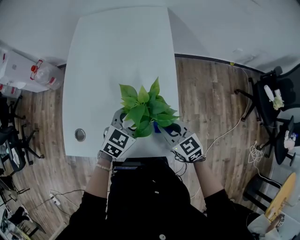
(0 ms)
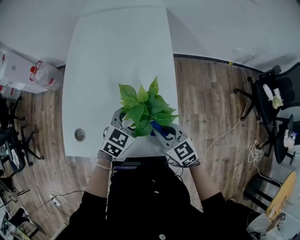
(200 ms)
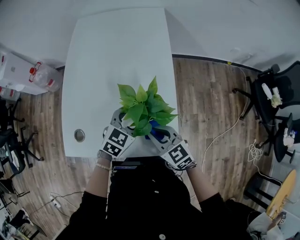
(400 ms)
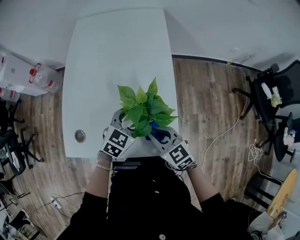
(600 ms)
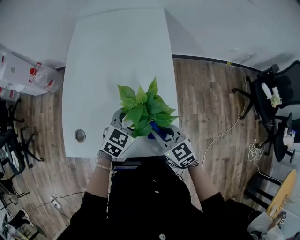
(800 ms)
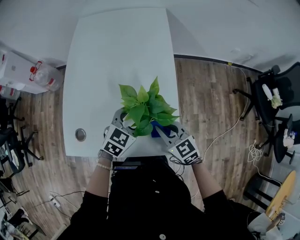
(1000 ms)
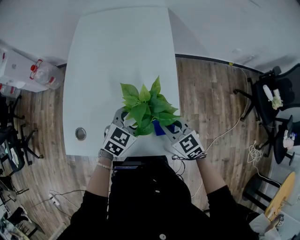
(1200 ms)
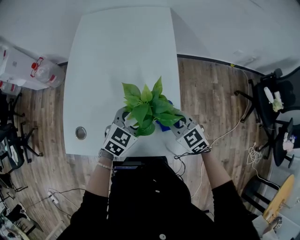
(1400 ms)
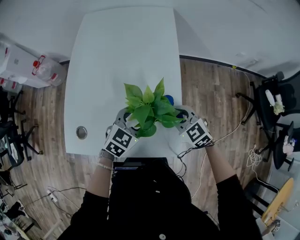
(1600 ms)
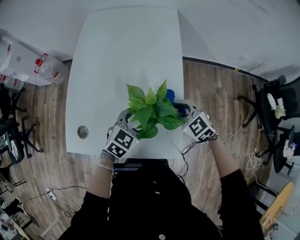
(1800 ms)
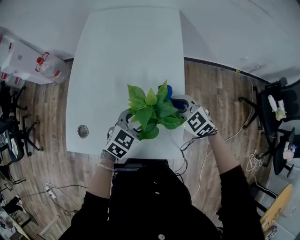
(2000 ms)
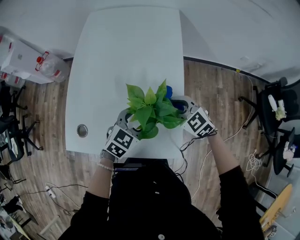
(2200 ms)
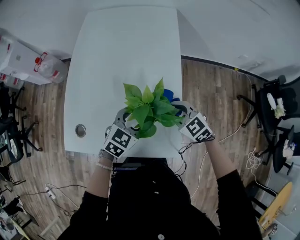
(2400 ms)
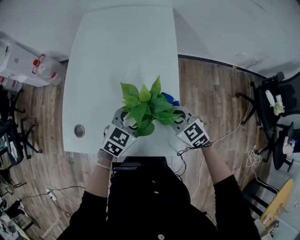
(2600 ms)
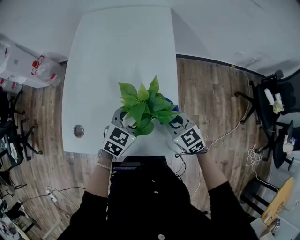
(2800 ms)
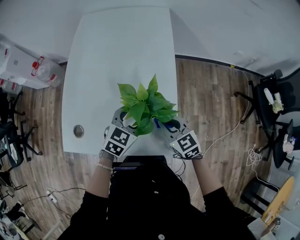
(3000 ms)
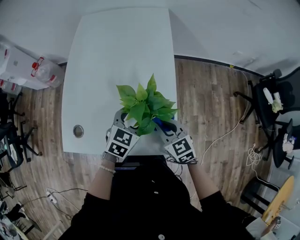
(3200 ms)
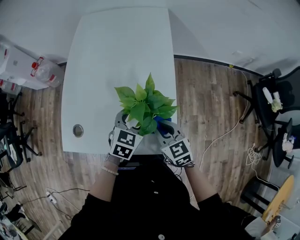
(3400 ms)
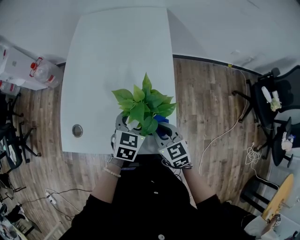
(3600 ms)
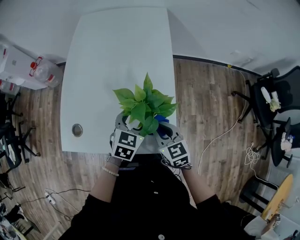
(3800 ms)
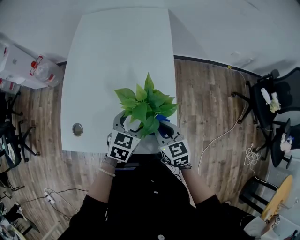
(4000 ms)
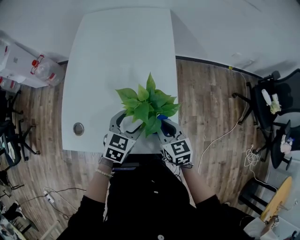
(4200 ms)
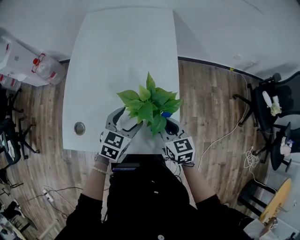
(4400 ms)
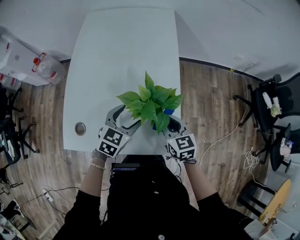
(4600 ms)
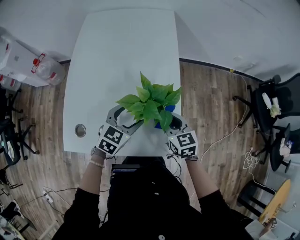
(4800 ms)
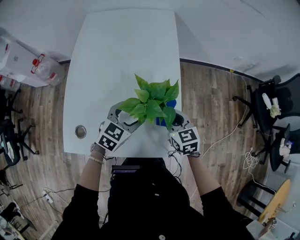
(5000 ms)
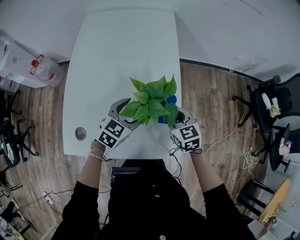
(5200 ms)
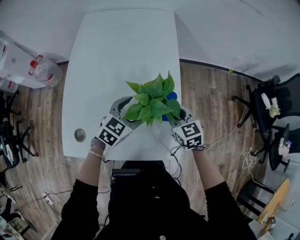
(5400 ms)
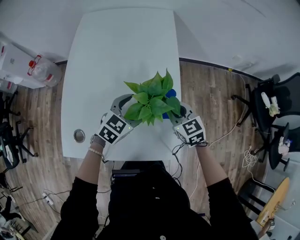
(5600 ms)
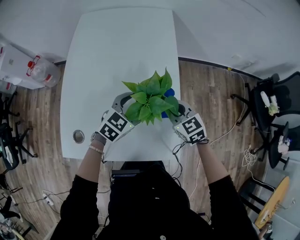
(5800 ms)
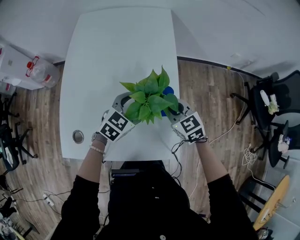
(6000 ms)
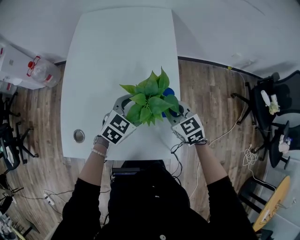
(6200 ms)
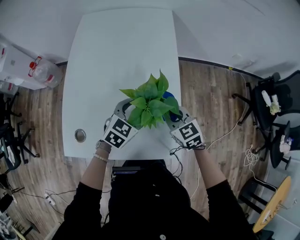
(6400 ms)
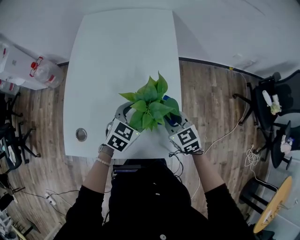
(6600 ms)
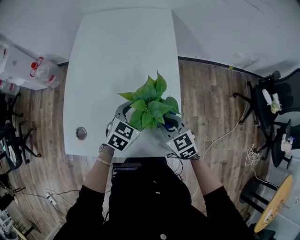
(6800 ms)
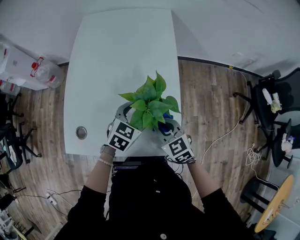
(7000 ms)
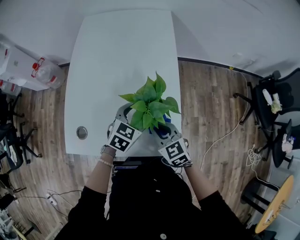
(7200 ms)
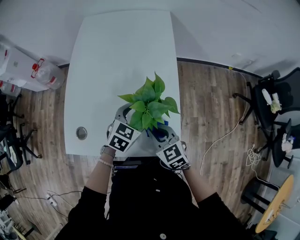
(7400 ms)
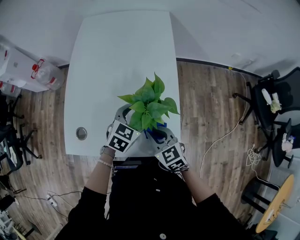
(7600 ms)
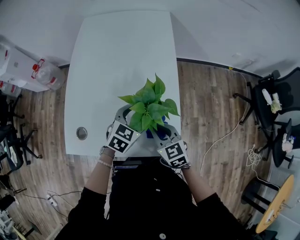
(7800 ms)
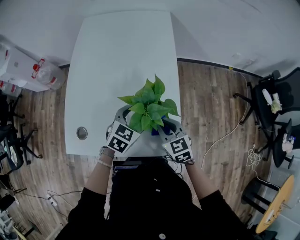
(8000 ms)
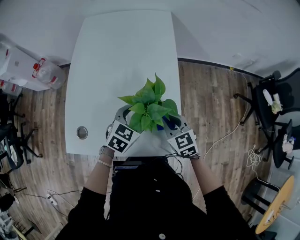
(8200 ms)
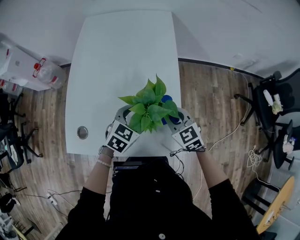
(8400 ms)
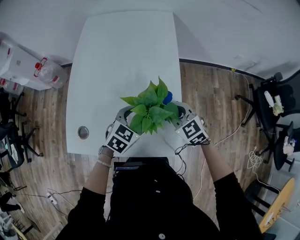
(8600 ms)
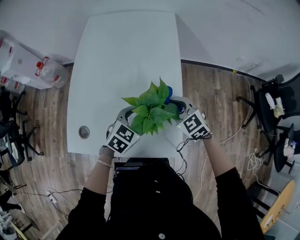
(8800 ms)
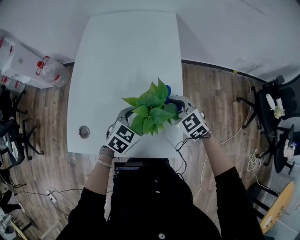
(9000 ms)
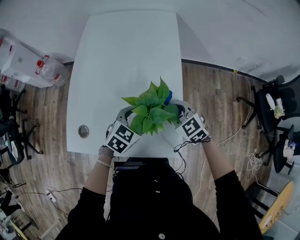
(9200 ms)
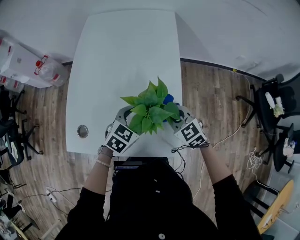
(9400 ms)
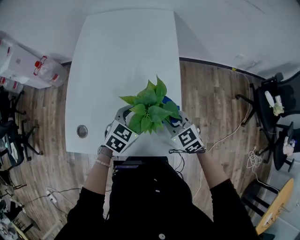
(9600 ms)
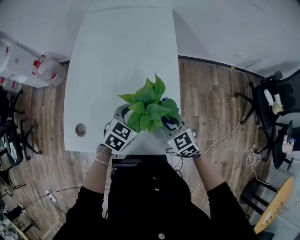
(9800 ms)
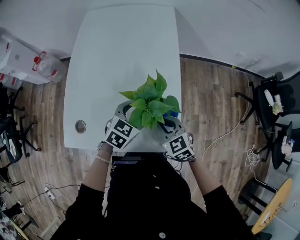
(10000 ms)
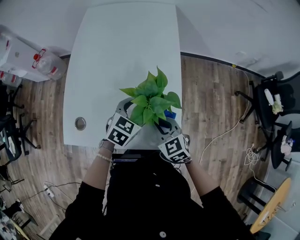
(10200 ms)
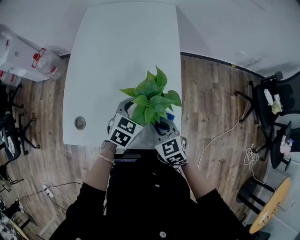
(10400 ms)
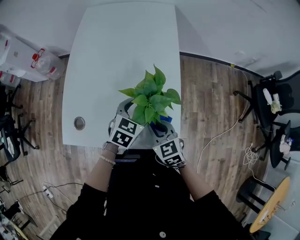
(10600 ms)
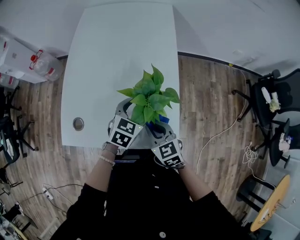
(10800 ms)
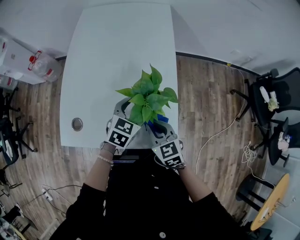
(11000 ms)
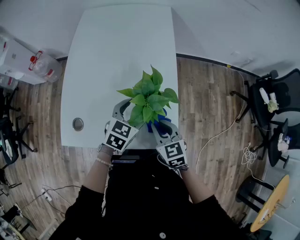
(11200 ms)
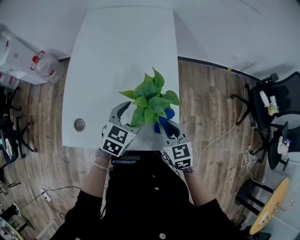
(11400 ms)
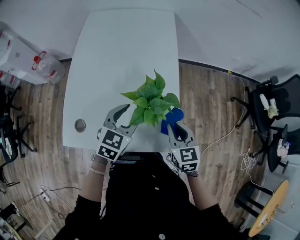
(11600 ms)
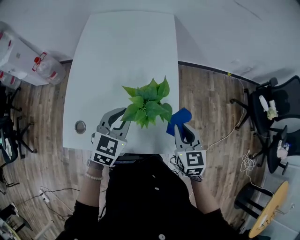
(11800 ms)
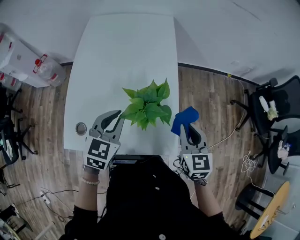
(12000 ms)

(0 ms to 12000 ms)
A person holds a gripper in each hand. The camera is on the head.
0 ms - 1600 ms: The right gripper is displaced forward by approximately 5 cm, and swivels approximately 20 degrees.
1600 ms - 3000 ms: There are only small adjustments of the grippers.
3000 ms - 4400 ms: The grippers stay close to where they were, moving slightly.
4400 ms - 6000 ms: Both grippers travel together forward, approximately 10 cm. The right gripper swivels some 20 degrees.
6000 ms - 7600 ms: The left gripper is displaced backward by roughly 5 cm. The right gripper shifts some 15 cm backward.
7600 ms - 9000 ms: The right gripper is displaced forward by some 15 cm.
9000 ms - 10400 ms: The right gripper moves backward, some 10 cm.
10400 ms - 12000 ms: The left gripper goes roughly 15 cm upward and to the left, and closes up, while the right gripper travels upward and to the right by some 15 cm, and turns by approximately 30 degrees.

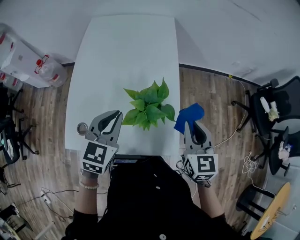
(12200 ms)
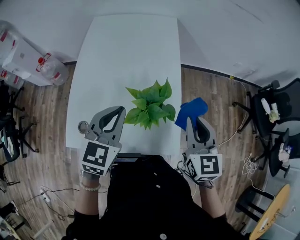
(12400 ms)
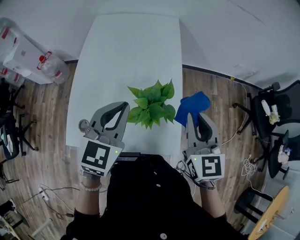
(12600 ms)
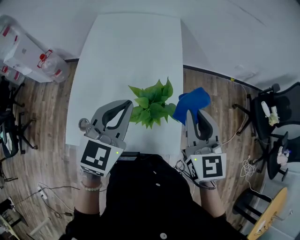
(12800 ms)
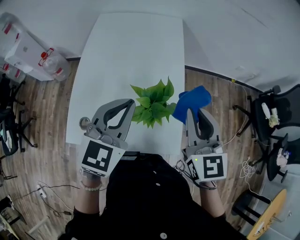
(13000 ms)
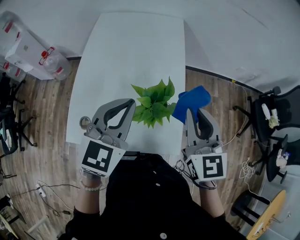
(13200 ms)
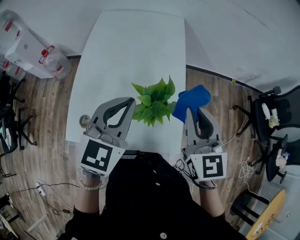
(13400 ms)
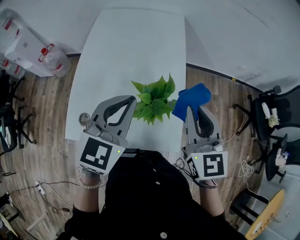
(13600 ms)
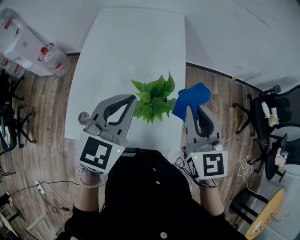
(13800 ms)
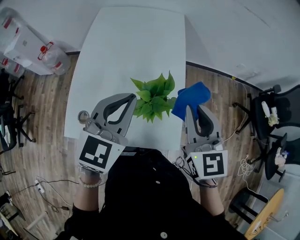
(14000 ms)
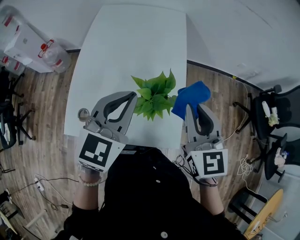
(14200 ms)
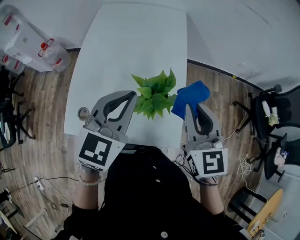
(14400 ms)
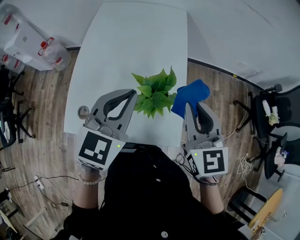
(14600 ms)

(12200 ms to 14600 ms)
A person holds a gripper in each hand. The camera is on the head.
12200 ms - 13400 ms: The left gripper heads upward, covering roughly 10 cm, while the right gripper goes roughly 10 cm upward and to the left.
13400 ms - 14600 ms: There are only small adjustments of the grippers.

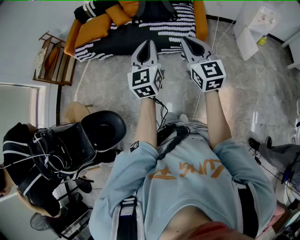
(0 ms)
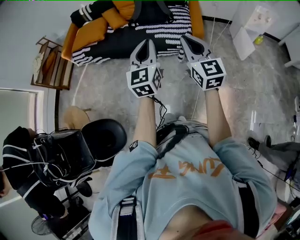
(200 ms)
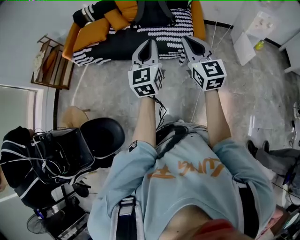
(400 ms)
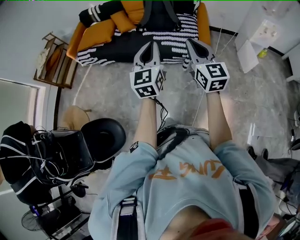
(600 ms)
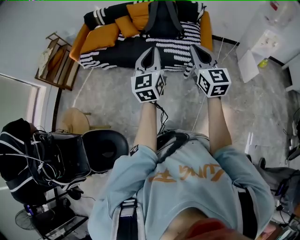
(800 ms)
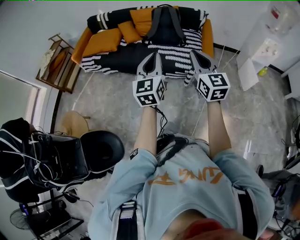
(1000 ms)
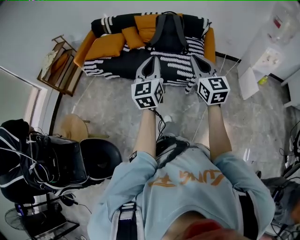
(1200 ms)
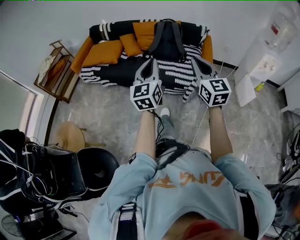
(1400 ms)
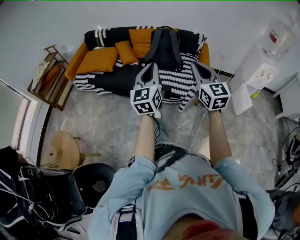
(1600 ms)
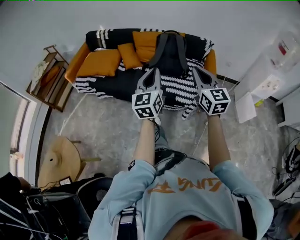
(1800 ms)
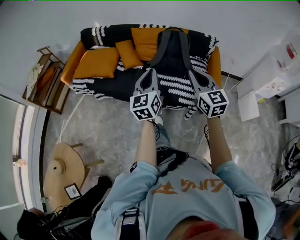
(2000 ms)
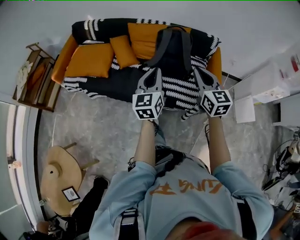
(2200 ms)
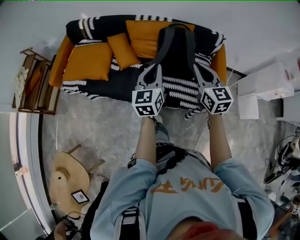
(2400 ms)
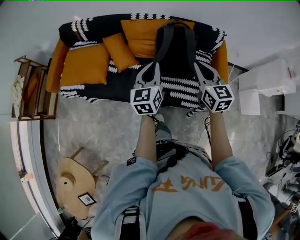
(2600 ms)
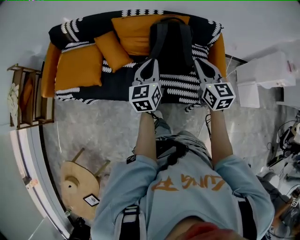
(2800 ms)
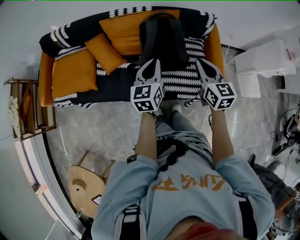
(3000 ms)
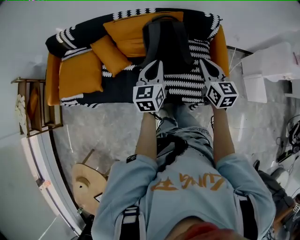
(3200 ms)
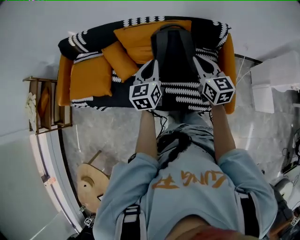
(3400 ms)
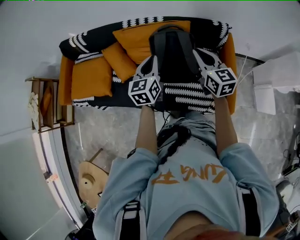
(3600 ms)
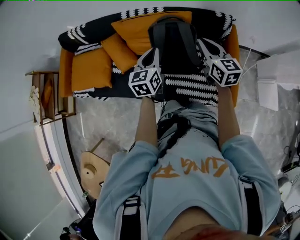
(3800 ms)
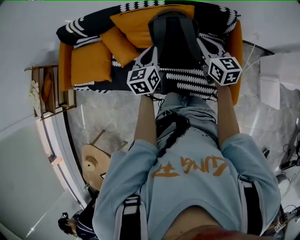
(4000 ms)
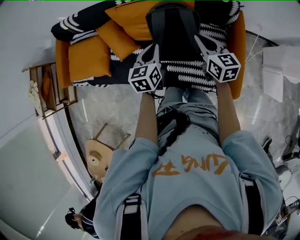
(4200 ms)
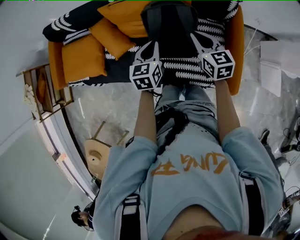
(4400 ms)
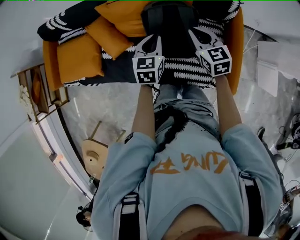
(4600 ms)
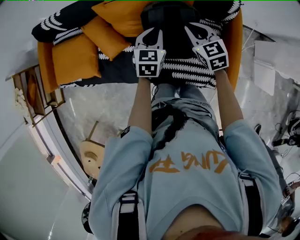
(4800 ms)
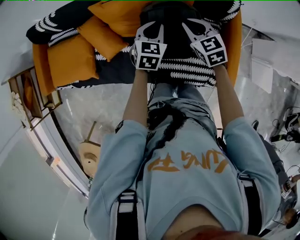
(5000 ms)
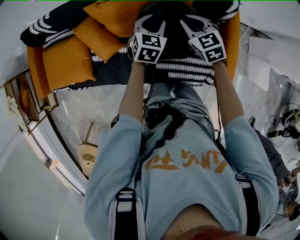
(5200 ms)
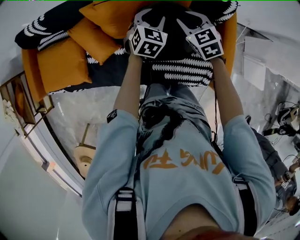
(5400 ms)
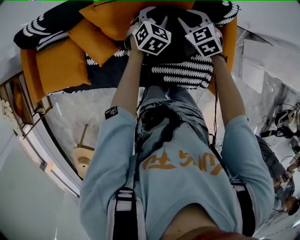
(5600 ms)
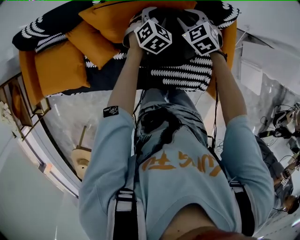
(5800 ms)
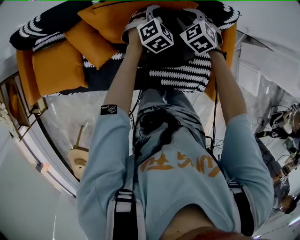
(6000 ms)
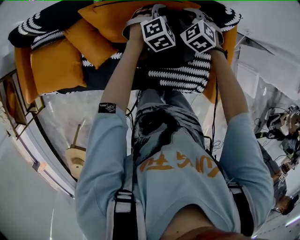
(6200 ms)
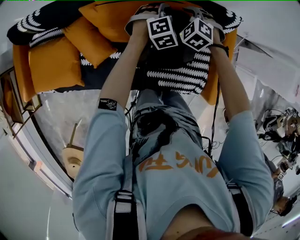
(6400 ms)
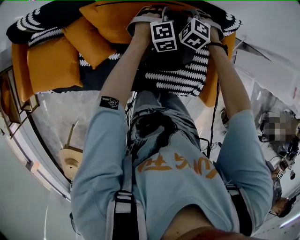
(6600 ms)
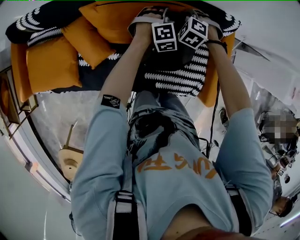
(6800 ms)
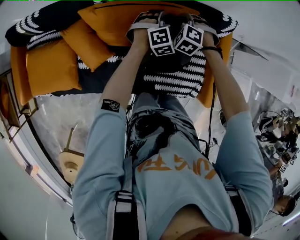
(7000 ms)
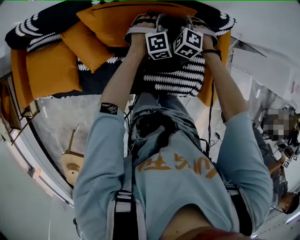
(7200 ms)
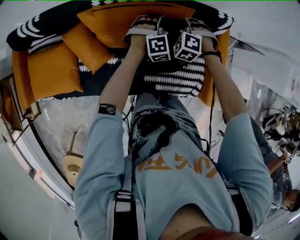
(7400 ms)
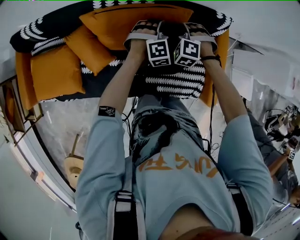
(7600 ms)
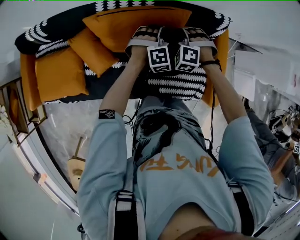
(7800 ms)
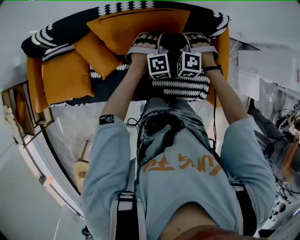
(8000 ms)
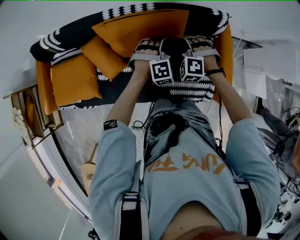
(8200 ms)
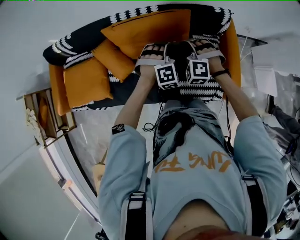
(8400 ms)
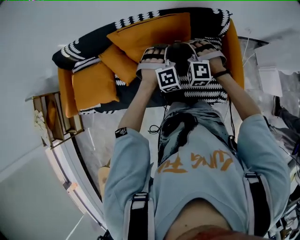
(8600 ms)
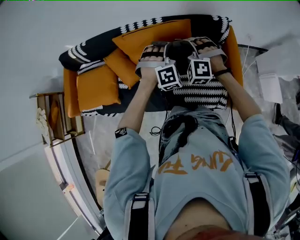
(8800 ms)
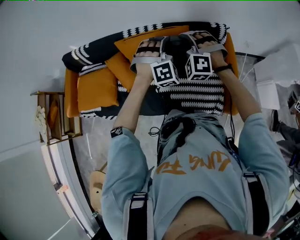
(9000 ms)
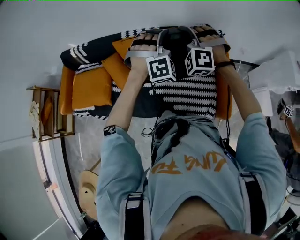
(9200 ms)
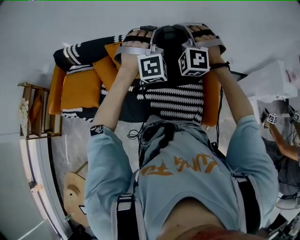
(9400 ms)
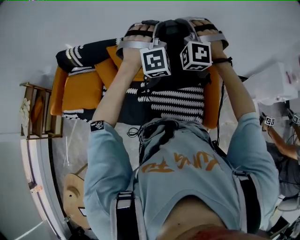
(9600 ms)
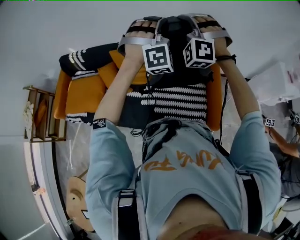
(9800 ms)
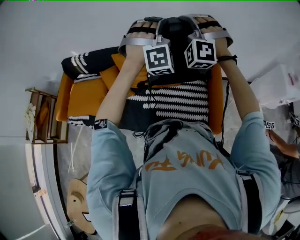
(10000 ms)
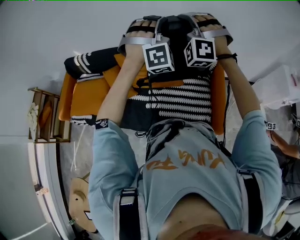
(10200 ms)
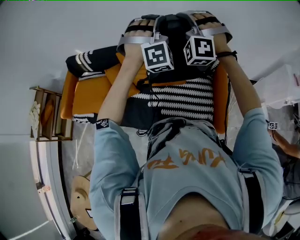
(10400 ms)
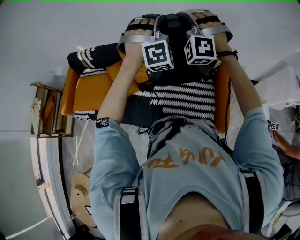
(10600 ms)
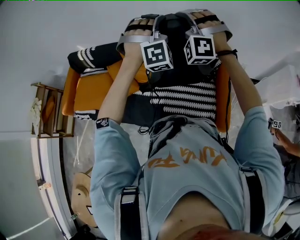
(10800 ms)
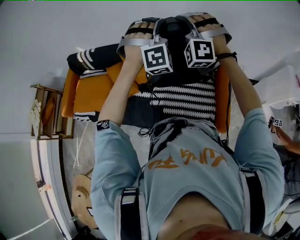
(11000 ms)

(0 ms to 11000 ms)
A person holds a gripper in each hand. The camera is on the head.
0 ms - 1600 ms: The right gripper moves forward, roughly 20 cm, while the left gripper shifts roughly 20 cm forward and to the left.
1600 ms - 3200 ms: The pair of grippers is taken forward, about 50 cm. The right gripper changes its angle by some 30 degrees. Meanwhile the left gripper rotates some 30 degrees.
3200 ms - 4800 ms: Both grippers move forward and downward, approximately 25 cm. The right gripper swivels roughly 30 degrees, while the left gripper swivels approximately 20 degrees.
4800 ms - 6200 ms: The grippers both shift forward and downward by roughly 15 cm. The left gripper rotates around the line of its fingers by some 40 degrees, clockwise from behind, and opens its fingers. Meanwhile the right gripper swivels roughly 40 degrees, and opens its fingers.
6200 ms - 7800 ms: The two grippers go approximately 5 cm backward. The right gripper rotates roughly 30 degrees; the left gripper swivels about 30 degrees, and closes.
7800 ms - 9400 ms: The left gripper heads upward and backward, covering roughly 35 cm, and rotates roughly 30 degrees, while the right gripper shifts about 30 cm upward, and points its fingers approximately 40 degrees further upward.
9400 ms - 11000 ms: The right gripper ends up about 5 cm from where it was. Meanwhile the left gripper moves about 5 cm.